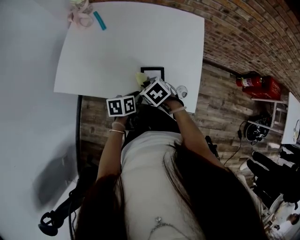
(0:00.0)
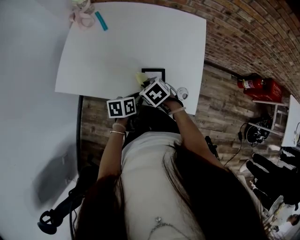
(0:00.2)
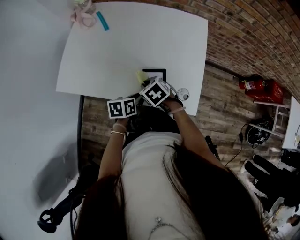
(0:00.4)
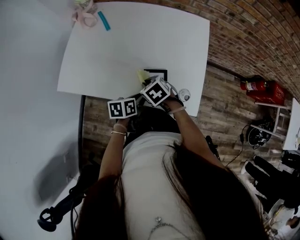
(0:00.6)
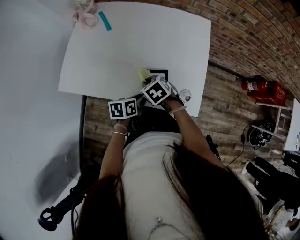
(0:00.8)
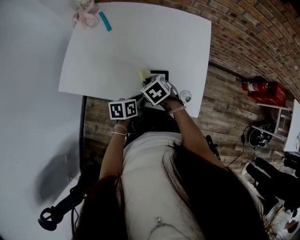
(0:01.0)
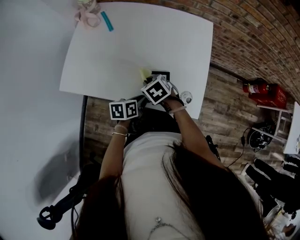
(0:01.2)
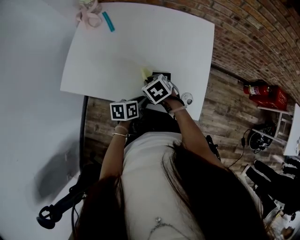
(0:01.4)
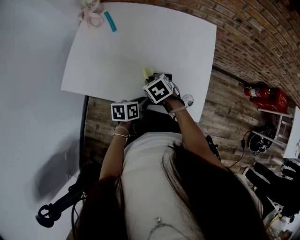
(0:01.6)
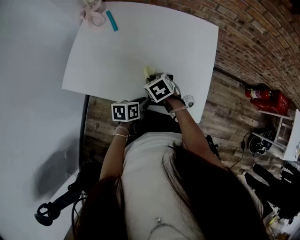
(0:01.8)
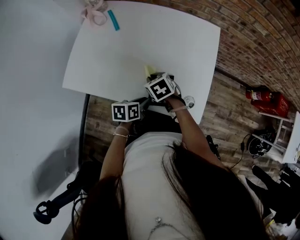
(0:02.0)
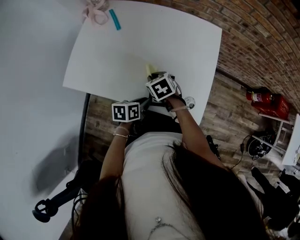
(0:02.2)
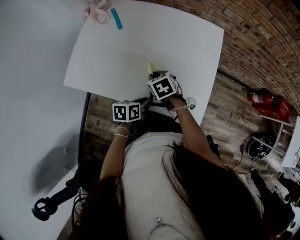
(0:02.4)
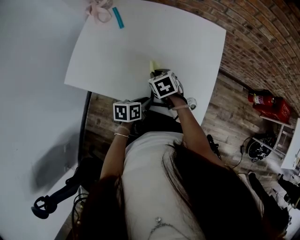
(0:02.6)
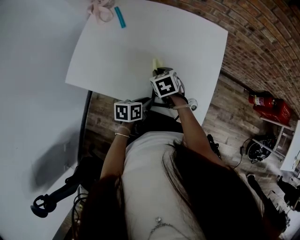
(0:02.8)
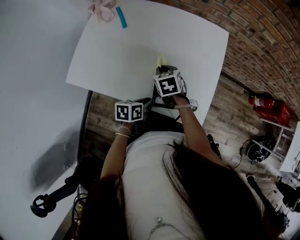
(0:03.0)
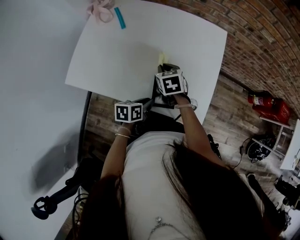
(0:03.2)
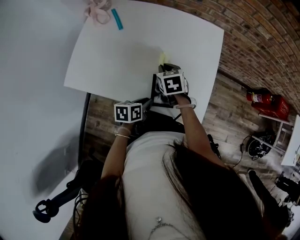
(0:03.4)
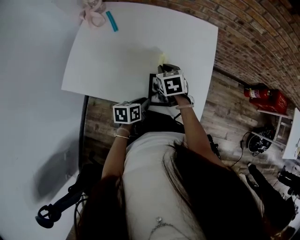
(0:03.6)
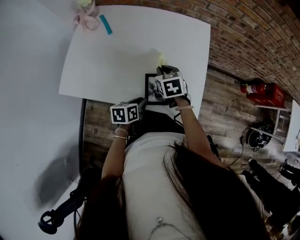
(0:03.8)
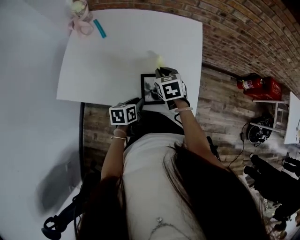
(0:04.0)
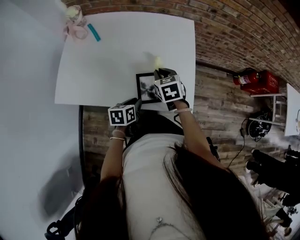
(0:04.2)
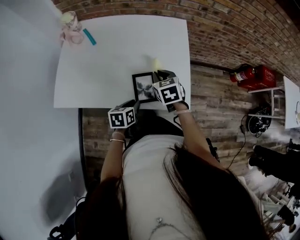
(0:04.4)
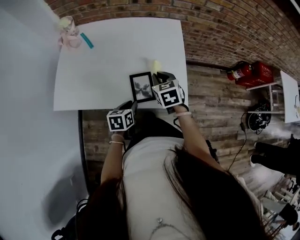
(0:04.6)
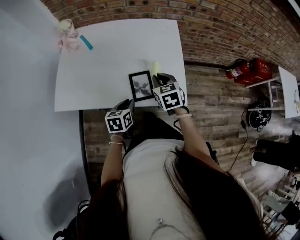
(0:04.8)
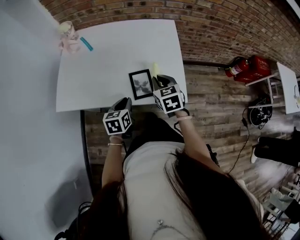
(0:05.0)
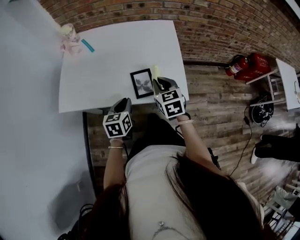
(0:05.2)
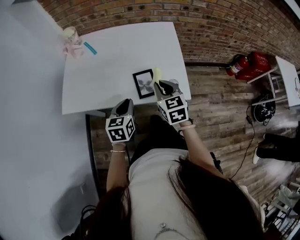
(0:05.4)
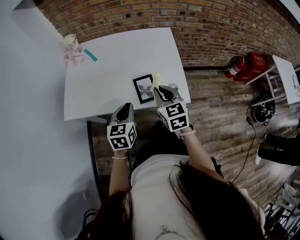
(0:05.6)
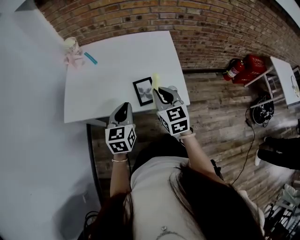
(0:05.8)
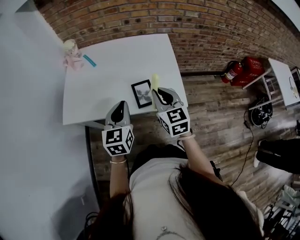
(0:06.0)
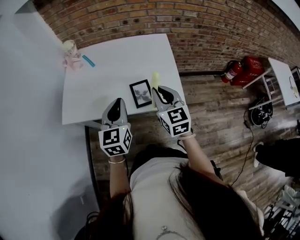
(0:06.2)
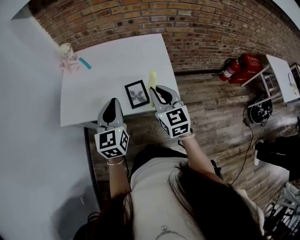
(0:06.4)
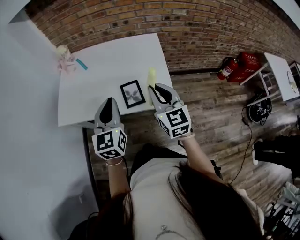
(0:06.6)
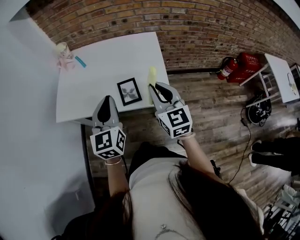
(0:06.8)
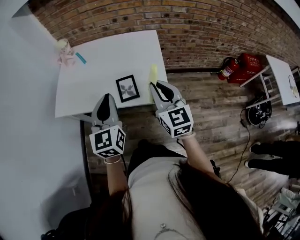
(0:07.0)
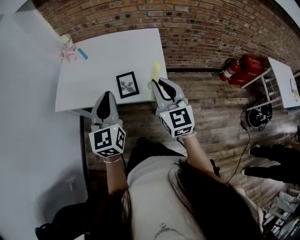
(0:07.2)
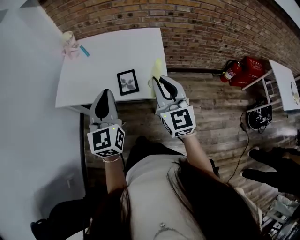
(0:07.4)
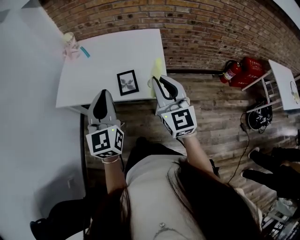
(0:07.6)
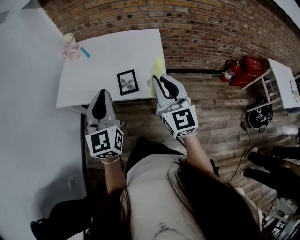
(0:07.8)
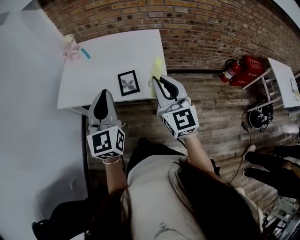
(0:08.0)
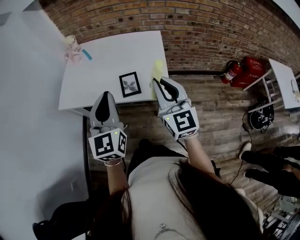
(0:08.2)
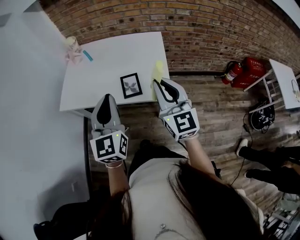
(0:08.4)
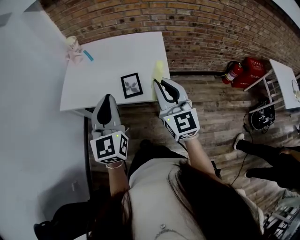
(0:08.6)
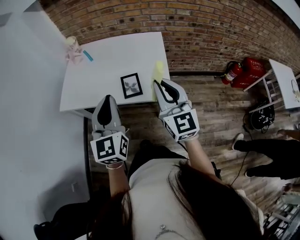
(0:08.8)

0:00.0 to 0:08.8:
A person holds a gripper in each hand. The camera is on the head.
0:00.0 to 0:01.4: The right gripper shifts about 5 cm forward.
0:01.4 to 0:03.0: The right gripper shifts about 5 cm forward.
0:03.0 to 0:04.4: The right gripper shifts about 10 cm to the right and upward.
0:04.4 to 0:05.8: The left gripper heads upward, covering roughly 20 cm, and swivels some 40 degrees. The right gripper moves backward and upward, approximately 20 cm, and changes its angle by some 30 degrees.
0:05.8 to 0:07.4: The right gripper is displaced upward, to the right and backward by some 20 cm, and changes its angle by about 20 degrees. Meanwhile the left gripper heads upward, backward and to the right, covering roughly 20 cm, and turns by about 20 degrees.
0:07.4 to 0:08.8: The grippers move only a little.

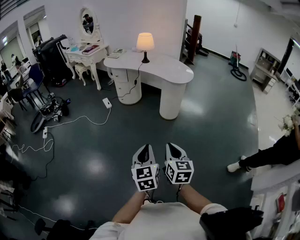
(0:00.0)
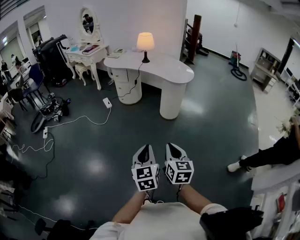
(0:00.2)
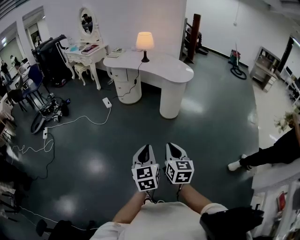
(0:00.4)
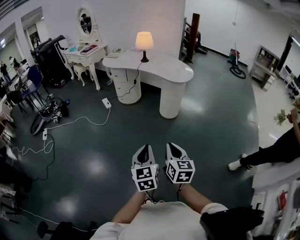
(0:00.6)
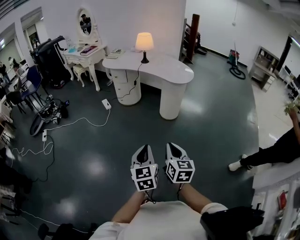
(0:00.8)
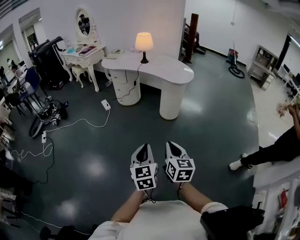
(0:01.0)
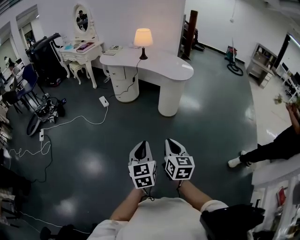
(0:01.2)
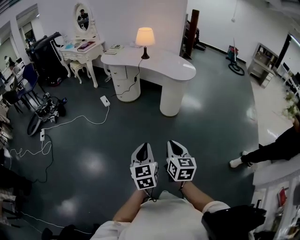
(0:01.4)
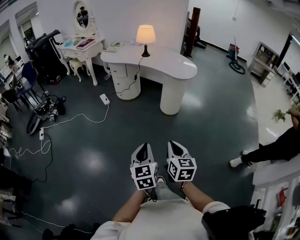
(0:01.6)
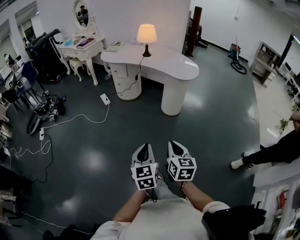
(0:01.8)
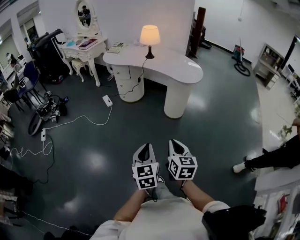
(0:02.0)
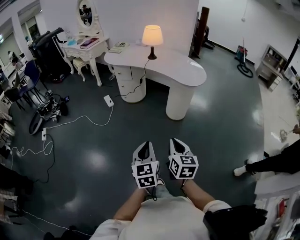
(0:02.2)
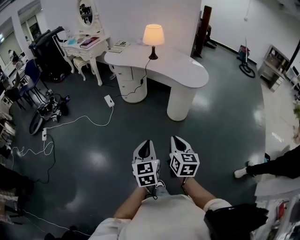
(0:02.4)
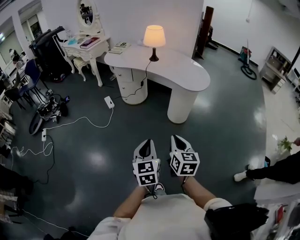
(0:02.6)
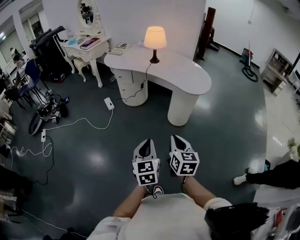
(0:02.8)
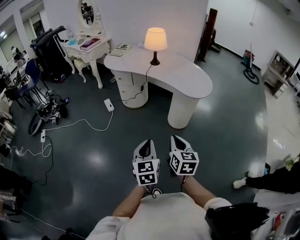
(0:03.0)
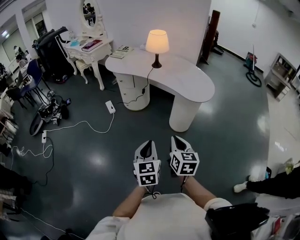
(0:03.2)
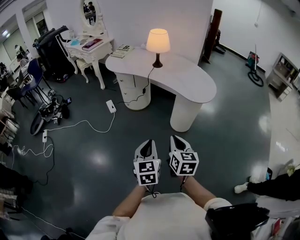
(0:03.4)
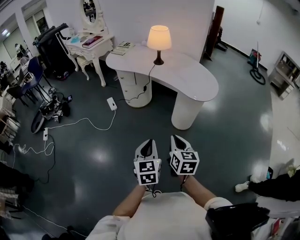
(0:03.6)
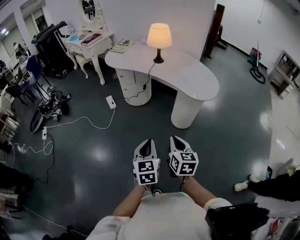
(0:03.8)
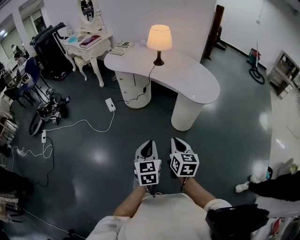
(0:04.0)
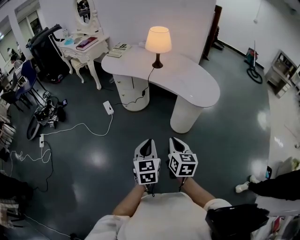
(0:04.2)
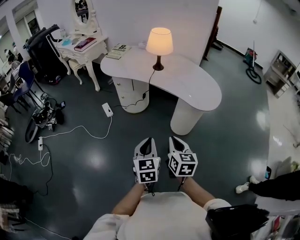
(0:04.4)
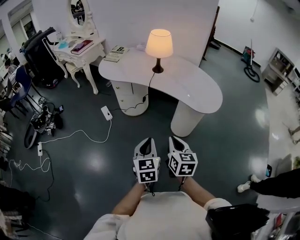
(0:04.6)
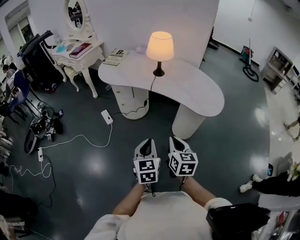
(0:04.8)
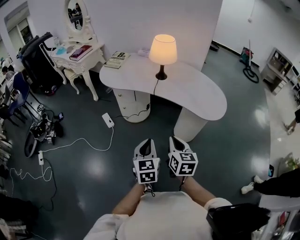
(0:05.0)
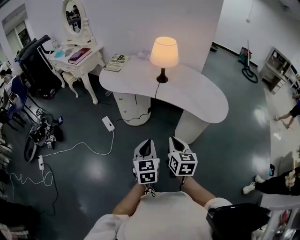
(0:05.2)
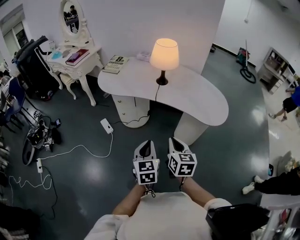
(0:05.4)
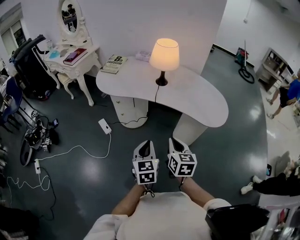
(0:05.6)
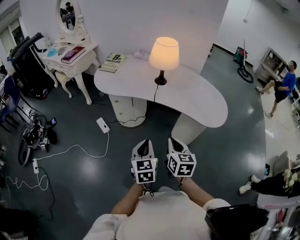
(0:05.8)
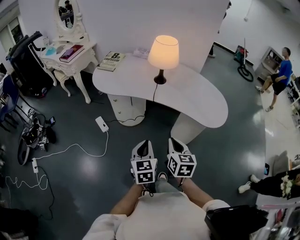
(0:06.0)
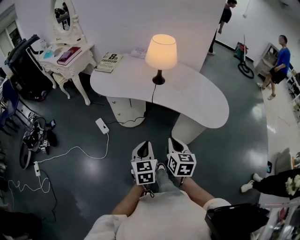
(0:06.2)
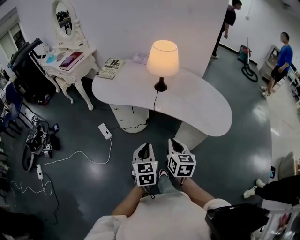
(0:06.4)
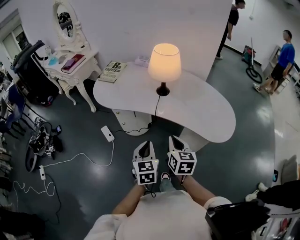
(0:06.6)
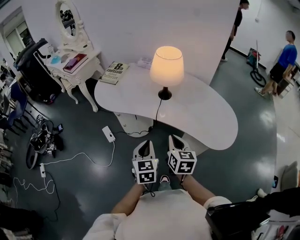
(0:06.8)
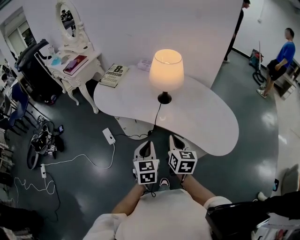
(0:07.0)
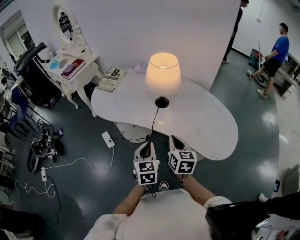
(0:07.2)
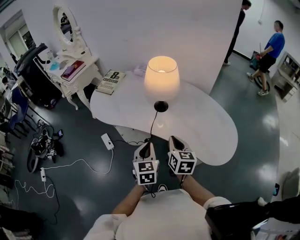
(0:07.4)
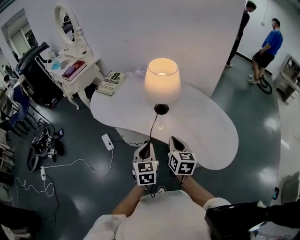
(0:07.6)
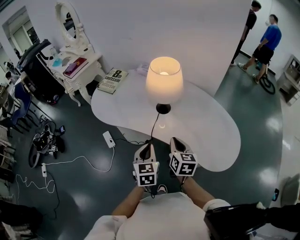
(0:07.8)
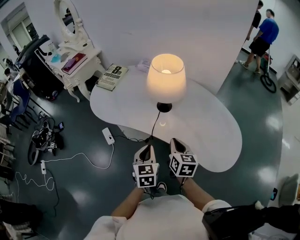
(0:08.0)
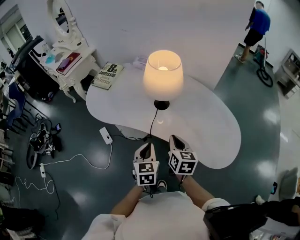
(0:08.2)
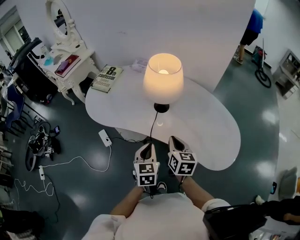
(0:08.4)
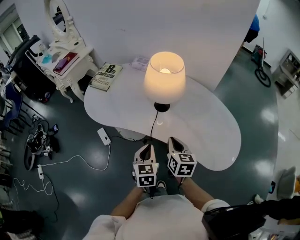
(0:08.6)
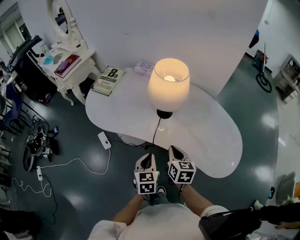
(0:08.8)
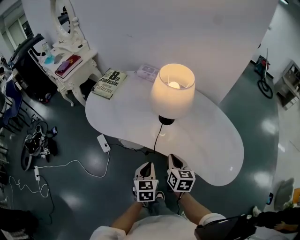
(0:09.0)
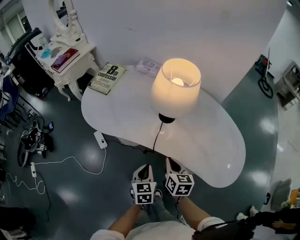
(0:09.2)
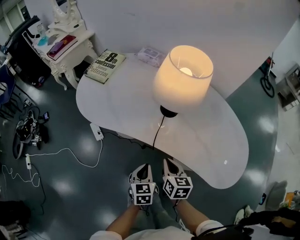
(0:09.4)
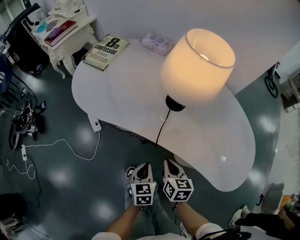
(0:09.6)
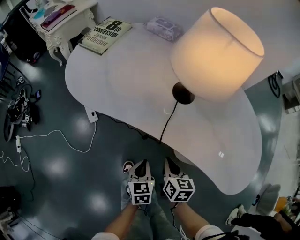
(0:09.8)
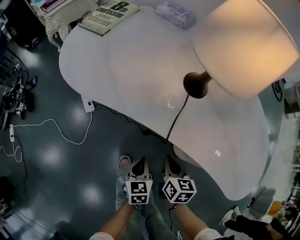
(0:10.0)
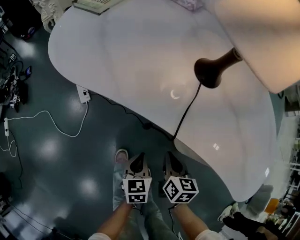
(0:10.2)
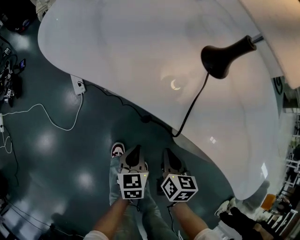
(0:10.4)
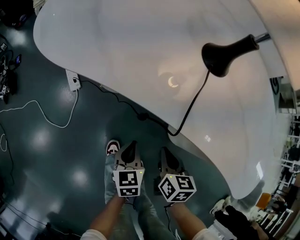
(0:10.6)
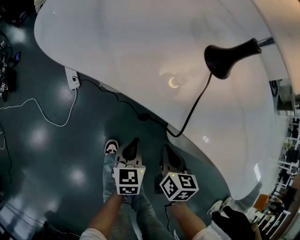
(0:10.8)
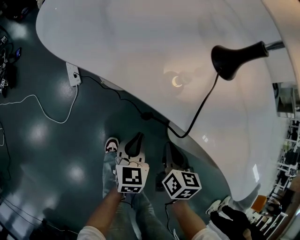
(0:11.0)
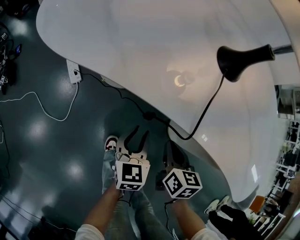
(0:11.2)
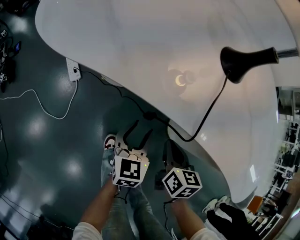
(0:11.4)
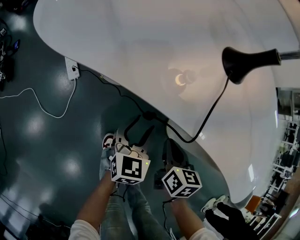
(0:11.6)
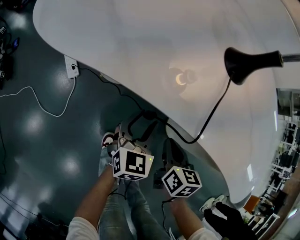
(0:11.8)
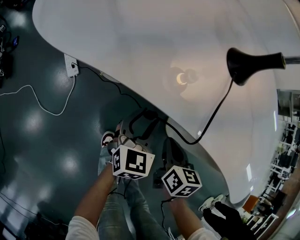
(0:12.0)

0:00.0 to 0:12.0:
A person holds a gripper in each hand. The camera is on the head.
0:00.0 to 0:01.6: The left gripper moves forward and to the left, about 10 cm, while the right gripper goes some 5 cm forward.
0:01.6 to 0:03.0: Both grippers travel together forward, approximately 25 cm.
0:03.0 to 0:04.4: The grippers both shift forward by about 15 cm.
0:04.4 to 0:06.0: Both grippers move forward and to the left, approximately 20 cm.
0:06.0 to 0:07.6: Both grippers move forward, roughly 25 cm.
0:07.6 to 0:09.0: Both grippers travel together downward, about 10 cm.
0:09.0 to 0:10.4: The two grippers go approximately 30 cm downward.
0:10.4 to 0:12.0: The left gripper travels forward by about 10 cm, rotates about 30 degrees, and opens its fingers.

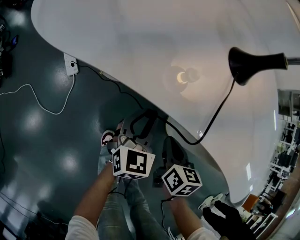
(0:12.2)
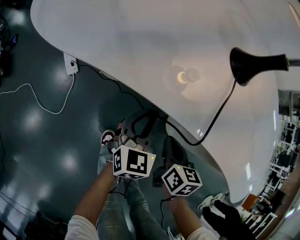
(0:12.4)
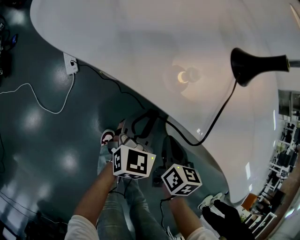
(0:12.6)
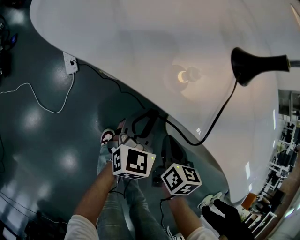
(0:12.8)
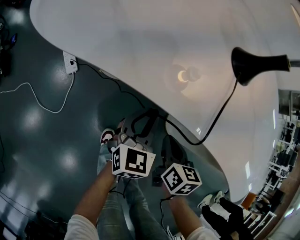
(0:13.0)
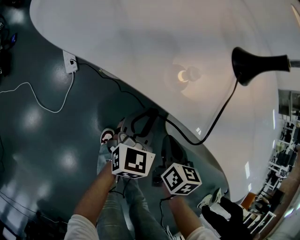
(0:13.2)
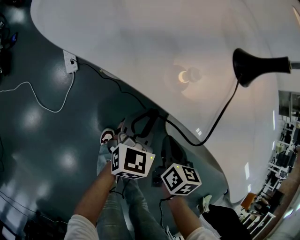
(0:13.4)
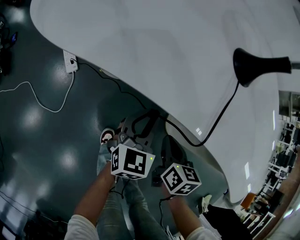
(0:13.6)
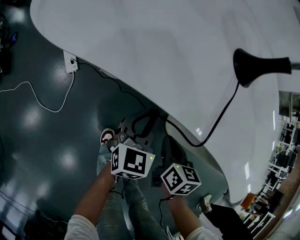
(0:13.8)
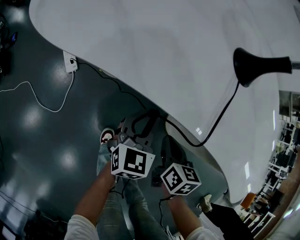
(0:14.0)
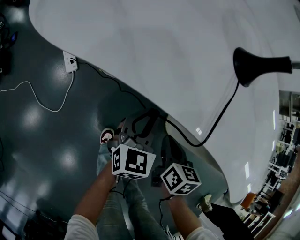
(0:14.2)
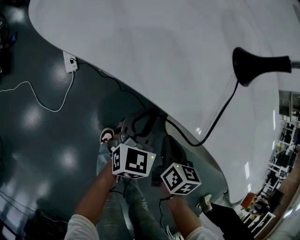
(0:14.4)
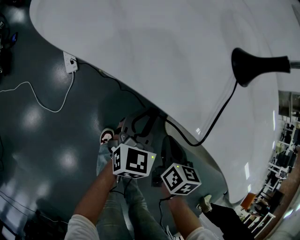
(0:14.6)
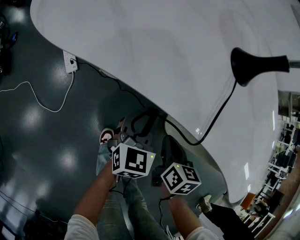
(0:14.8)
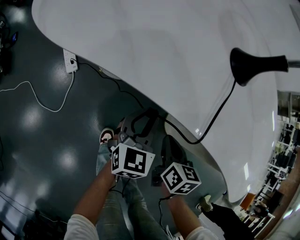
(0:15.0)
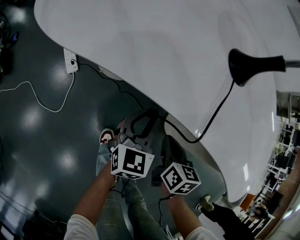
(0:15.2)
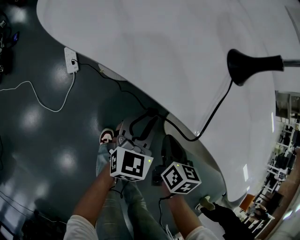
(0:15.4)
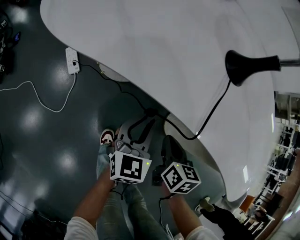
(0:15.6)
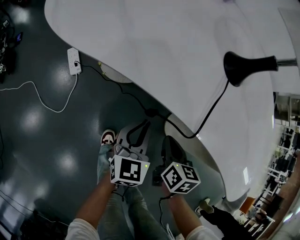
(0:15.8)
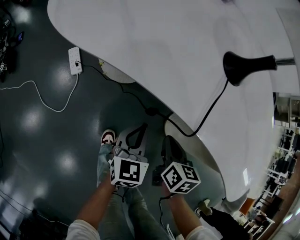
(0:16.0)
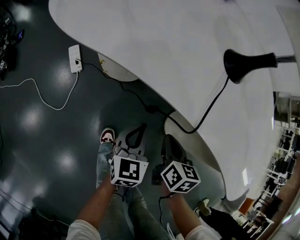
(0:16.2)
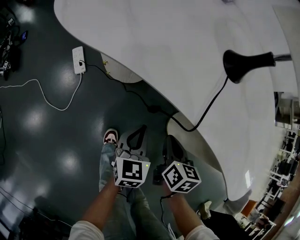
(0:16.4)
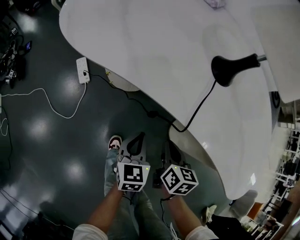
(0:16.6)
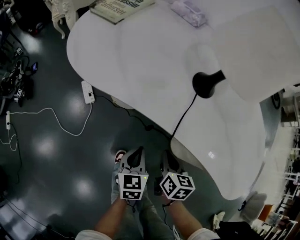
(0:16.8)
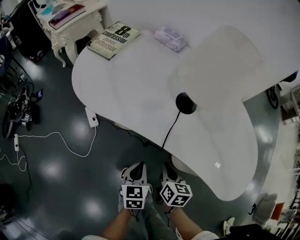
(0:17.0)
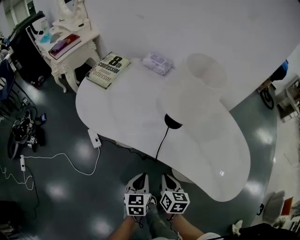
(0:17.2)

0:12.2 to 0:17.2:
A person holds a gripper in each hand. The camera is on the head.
0:12.2 to 0:13.8: Both grippers stay put.
0:13.8 to 0:15.6: The grippers stay close to where they were, moving slightly.
0:15.6 to 0:17.2: The left gripper moves upward and backward, roughly 20 cm; the right gripper moves upward, about 20 cm.